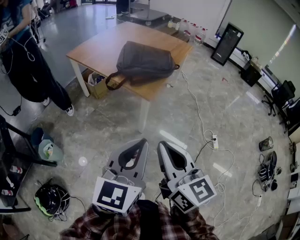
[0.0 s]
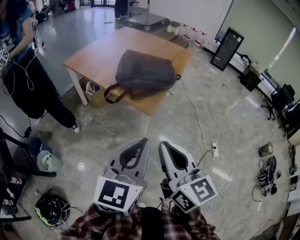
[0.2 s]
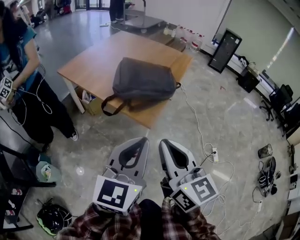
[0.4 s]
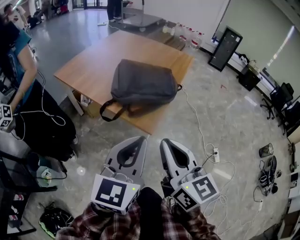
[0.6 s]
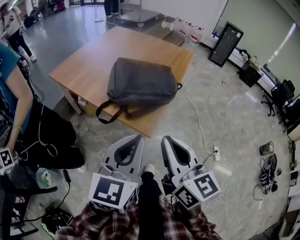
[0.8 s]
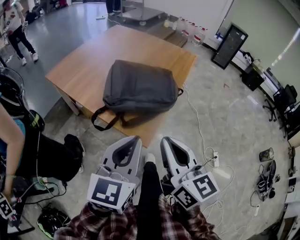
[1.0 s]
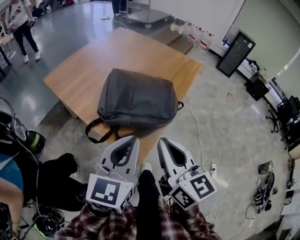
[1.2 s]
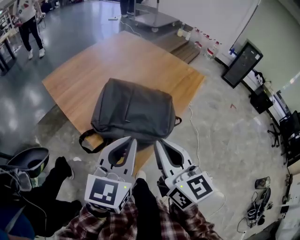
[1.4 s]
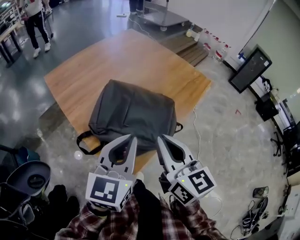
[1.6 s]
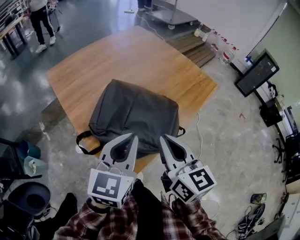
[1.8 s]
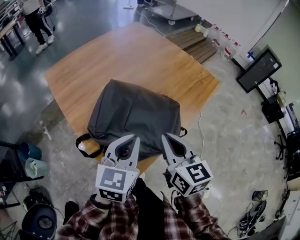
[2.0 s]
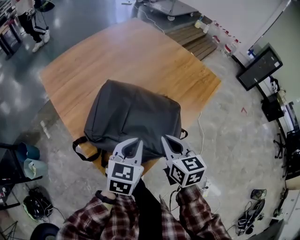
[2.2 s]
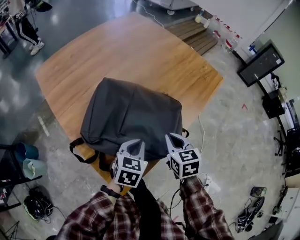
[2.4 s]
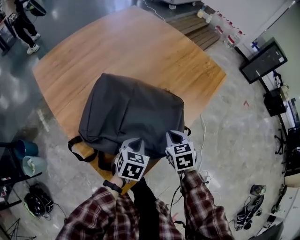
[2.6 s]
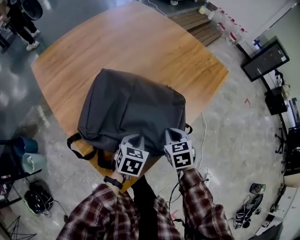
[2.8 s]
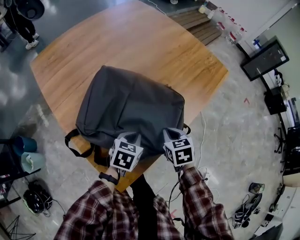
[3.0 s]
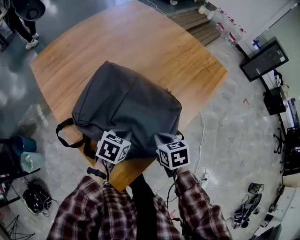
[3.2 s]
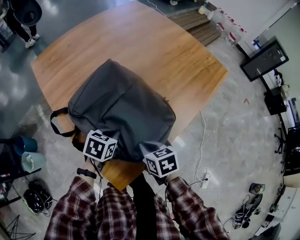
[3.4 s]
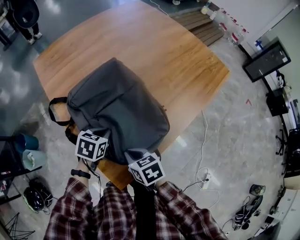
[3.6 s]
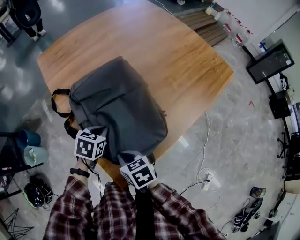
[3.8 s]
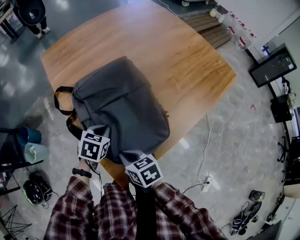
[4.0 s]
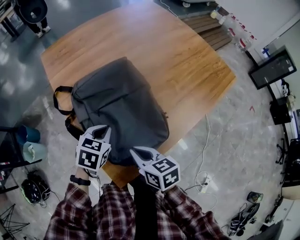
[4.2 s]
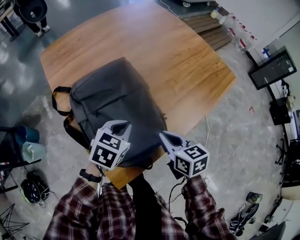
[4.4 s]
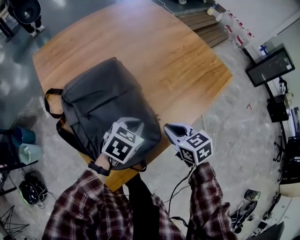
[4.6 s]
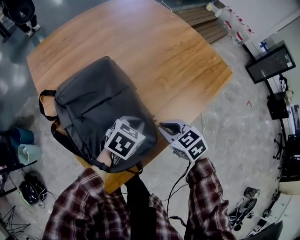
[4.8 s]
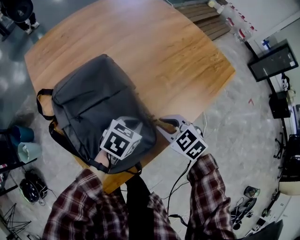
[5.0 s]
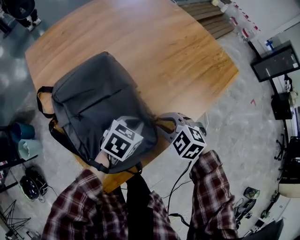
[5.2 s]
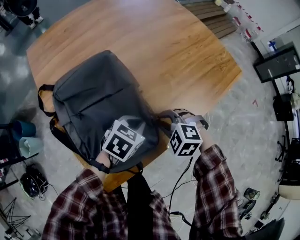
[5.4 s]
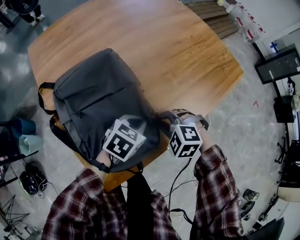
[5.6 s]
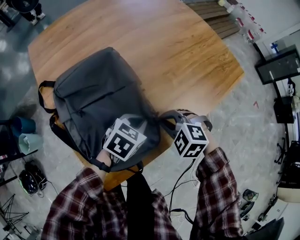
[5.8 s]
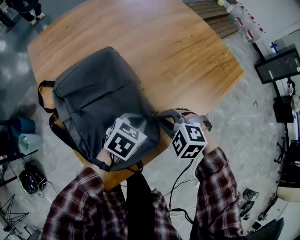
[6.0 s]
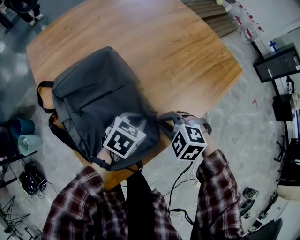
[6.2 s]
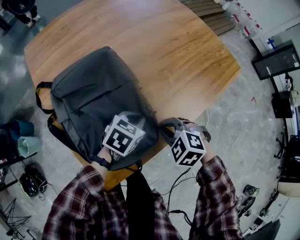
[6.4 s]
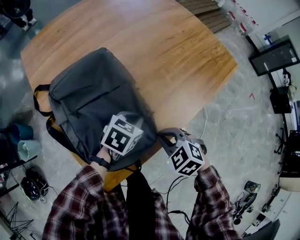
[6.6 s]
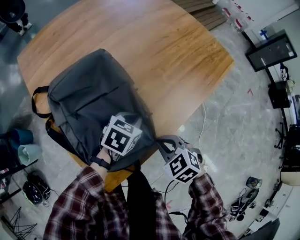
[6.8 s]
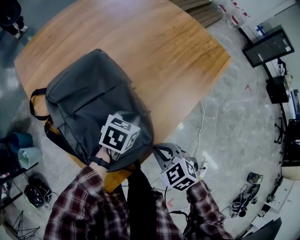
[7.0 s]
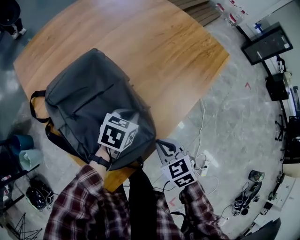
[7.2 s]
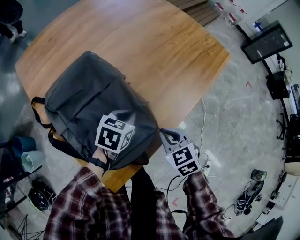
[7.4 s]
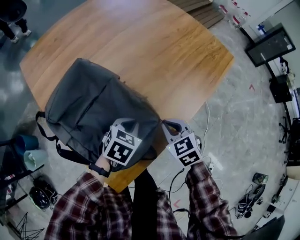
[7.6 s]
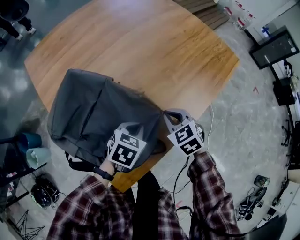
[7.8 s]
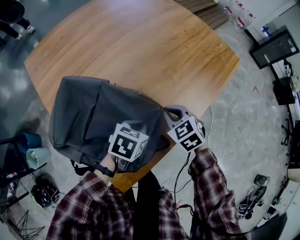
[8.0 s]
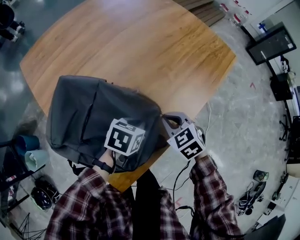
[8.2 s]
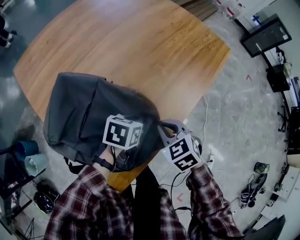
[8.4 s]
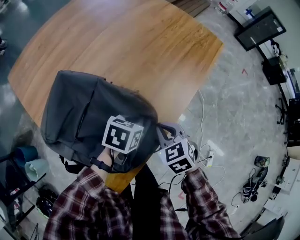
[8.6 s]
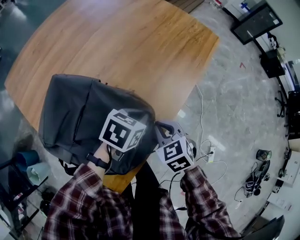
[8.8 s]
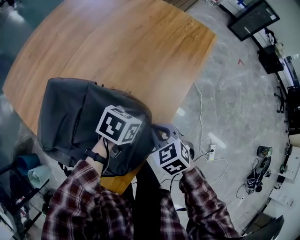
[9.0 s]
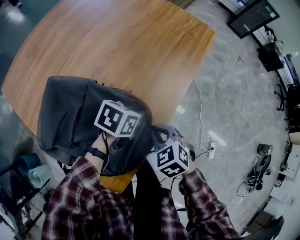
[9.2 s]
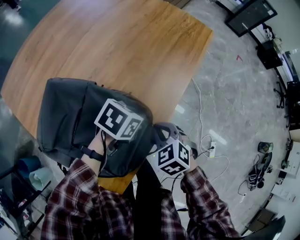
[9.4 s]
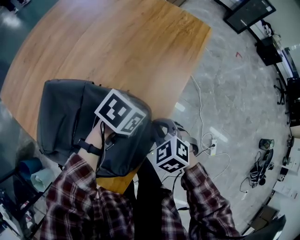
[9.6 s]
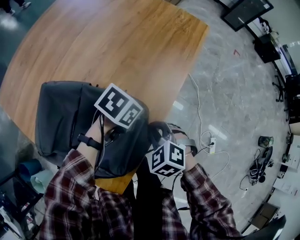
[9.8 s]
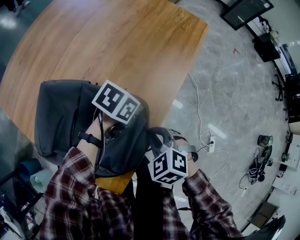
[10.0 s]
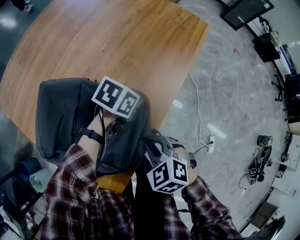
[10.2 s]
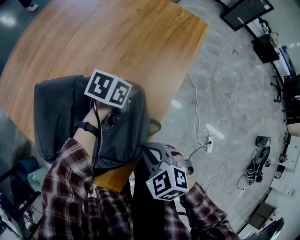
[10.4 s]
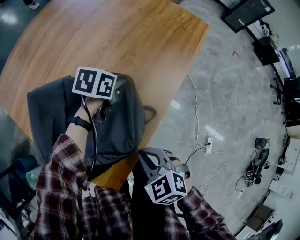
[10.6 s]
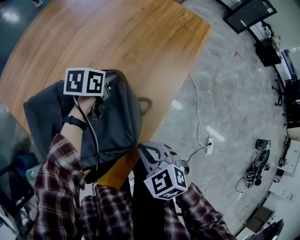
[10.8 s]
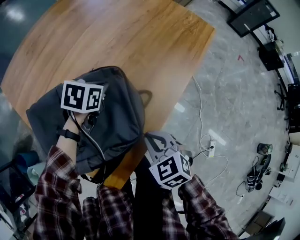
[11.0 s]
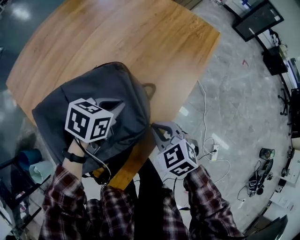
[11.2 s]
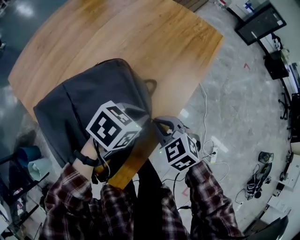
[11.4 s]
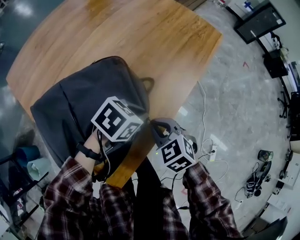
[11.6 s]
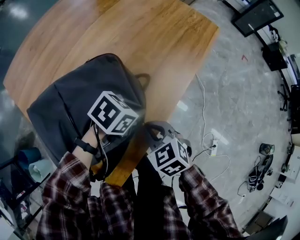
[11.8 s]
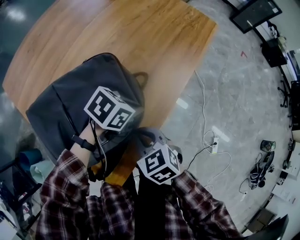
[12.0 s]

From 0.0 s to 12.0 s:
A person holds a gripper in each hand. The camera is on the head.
From 0.0 s to 1.6 s: Both grippers are carried forward, about 60 cm.
From 1.6 s to 3.0 s: The left gripper heads downward, covering approximately 30 cm, and tilts its fingers roughly 40 degrees downward. Meanwhile the right gripper heads downward and forward, covering roughly 35 cm, and tilts its fingers about 50 degrees downward.
From 3.0 s to 4.4 s: The two grippers go about 5 cm upward. The right gripper turns by about 30 degrees.
From 4.4 s to 6.0 s: The right gripper goes some 10 cm downward and forward, and rolls counterclockwise, seen from behind, by about 70 degrees, while the left gripper travels to the right and downward by some 15 cm.
From 6.0 s to 7.6 s: The right gripper reaches some 10 cm backward, then returns, and twists some 40 degrees clockwise, seen from behind.
From 7.6 s to 9.0 s: The left gripper is displaced to the right by approximately 5 cm, and changes its angle by roughly 20 degrees.
From 9.0 s to 10.4 s: The right gripper heads backward, covering about 10 cm. Meanwhile the left gripper goes some 5 cm forward.
From 10.4 s to 12.0 s: The left gripper shifts by about 10 cm.

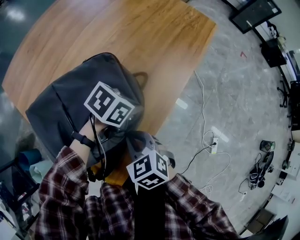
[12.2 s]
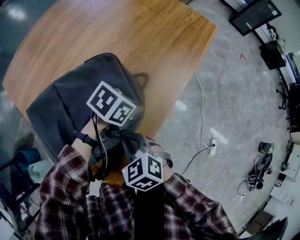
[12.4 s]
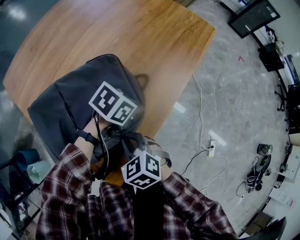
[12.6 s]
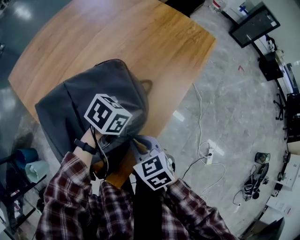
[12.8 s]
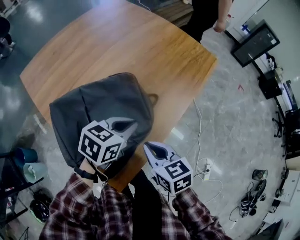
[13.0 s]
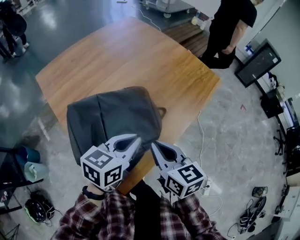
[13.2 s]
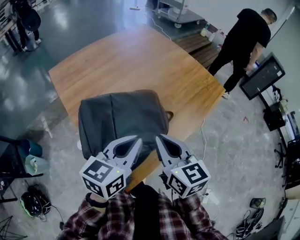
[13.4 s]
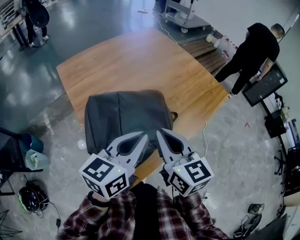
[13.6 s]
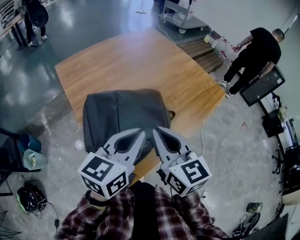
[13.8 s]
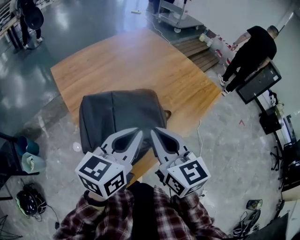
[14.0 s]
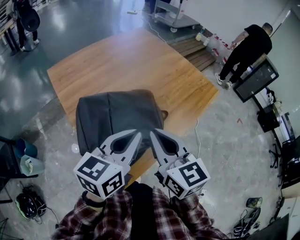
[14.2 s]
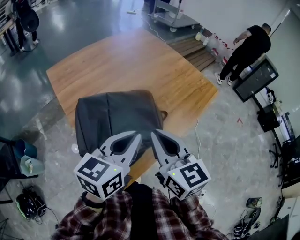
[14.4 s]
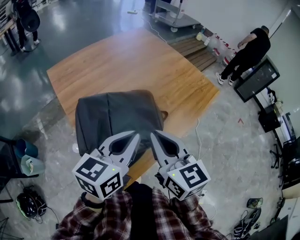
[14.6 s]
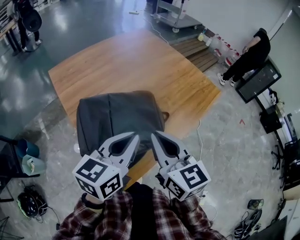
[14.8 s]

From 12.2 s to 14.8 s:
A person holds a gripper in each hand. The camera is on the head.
From 12.2 s to 13.4 s: The two grippers go some 25 cm upward. The left gripper tips its fingers upward by roughly 30 degrees. Meanwhile the right gripper tilts its fingers roughly 30 degrees upward.
From 13.4 s to 14.8 s: The right gripper changes place by approximately 5 cm.

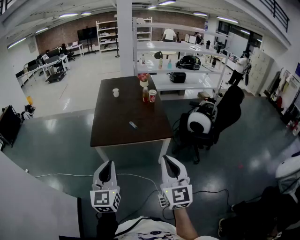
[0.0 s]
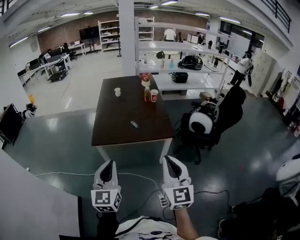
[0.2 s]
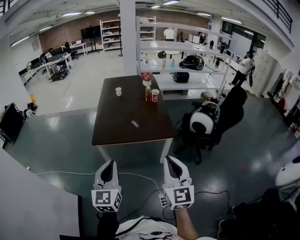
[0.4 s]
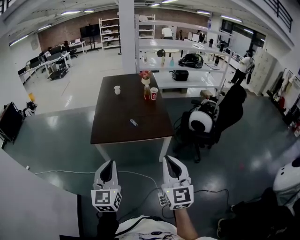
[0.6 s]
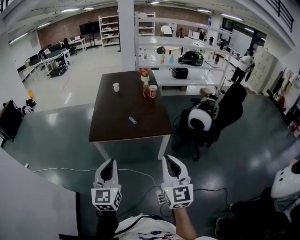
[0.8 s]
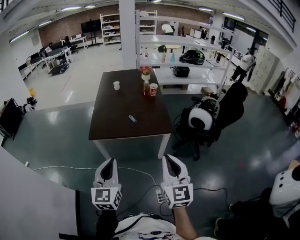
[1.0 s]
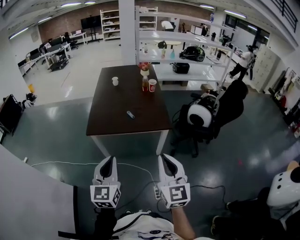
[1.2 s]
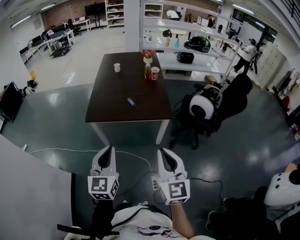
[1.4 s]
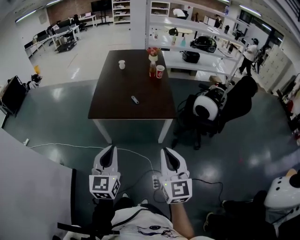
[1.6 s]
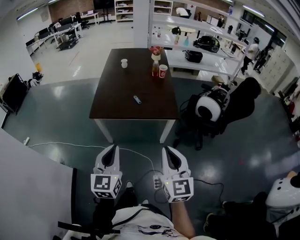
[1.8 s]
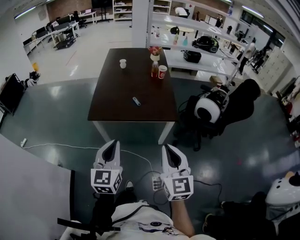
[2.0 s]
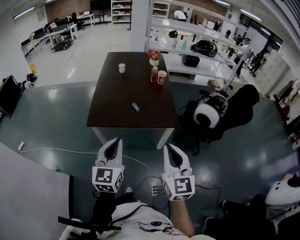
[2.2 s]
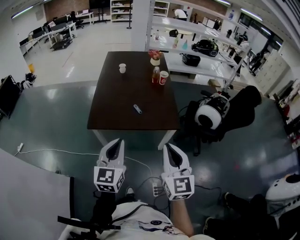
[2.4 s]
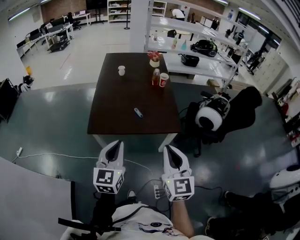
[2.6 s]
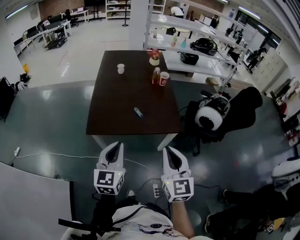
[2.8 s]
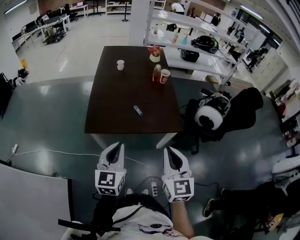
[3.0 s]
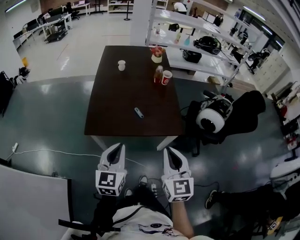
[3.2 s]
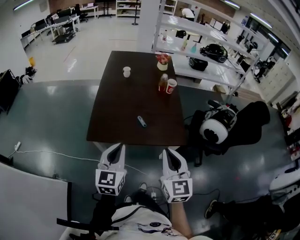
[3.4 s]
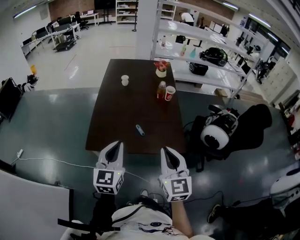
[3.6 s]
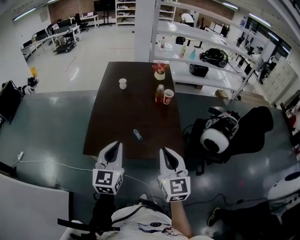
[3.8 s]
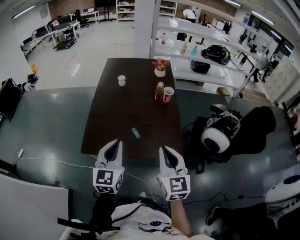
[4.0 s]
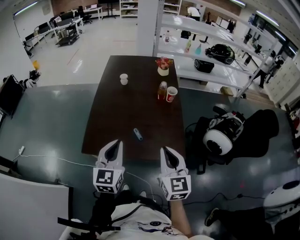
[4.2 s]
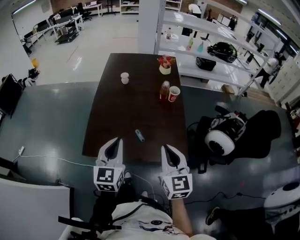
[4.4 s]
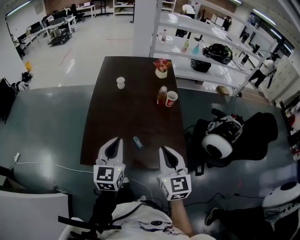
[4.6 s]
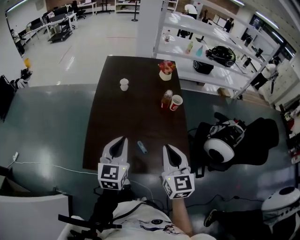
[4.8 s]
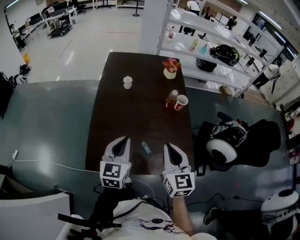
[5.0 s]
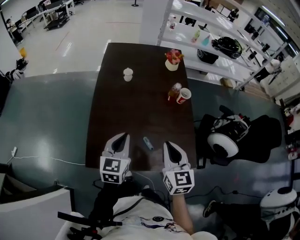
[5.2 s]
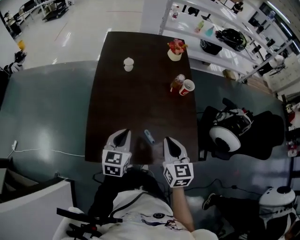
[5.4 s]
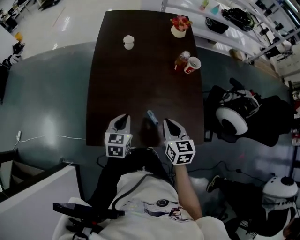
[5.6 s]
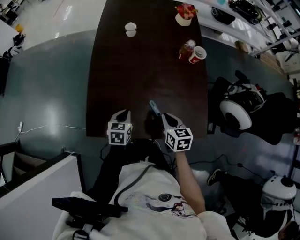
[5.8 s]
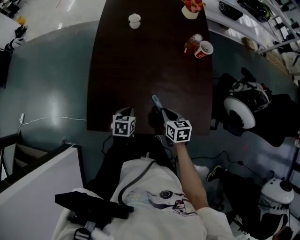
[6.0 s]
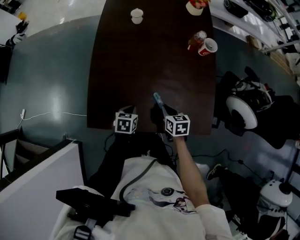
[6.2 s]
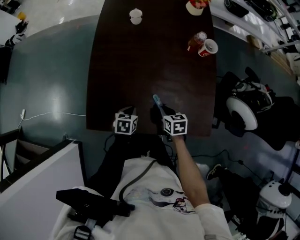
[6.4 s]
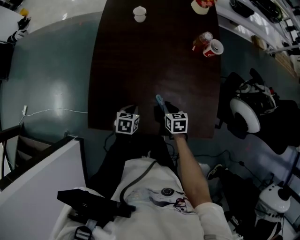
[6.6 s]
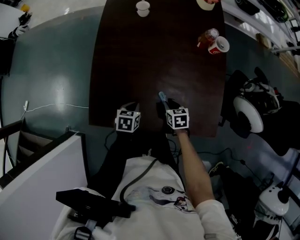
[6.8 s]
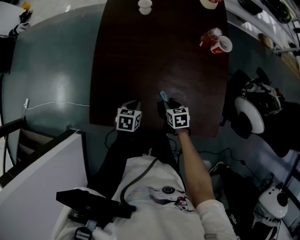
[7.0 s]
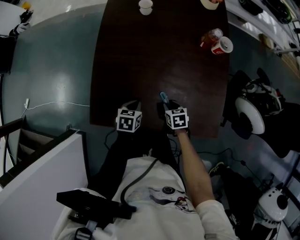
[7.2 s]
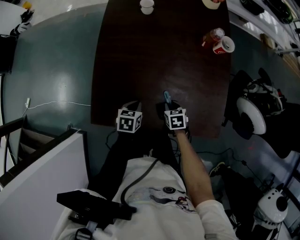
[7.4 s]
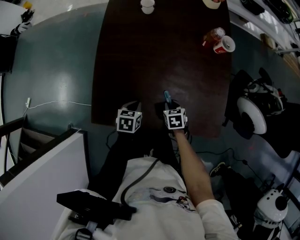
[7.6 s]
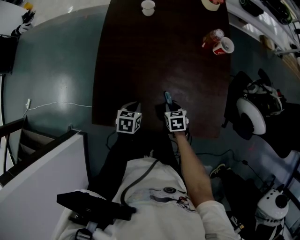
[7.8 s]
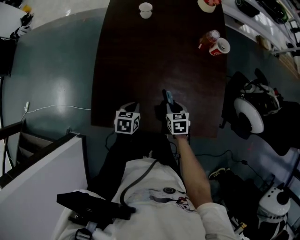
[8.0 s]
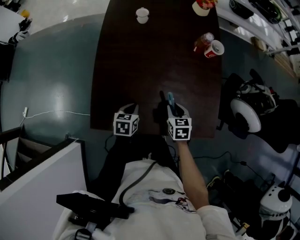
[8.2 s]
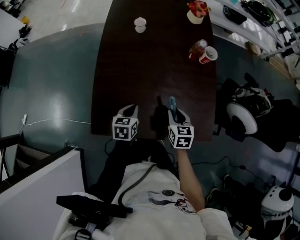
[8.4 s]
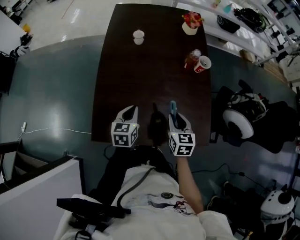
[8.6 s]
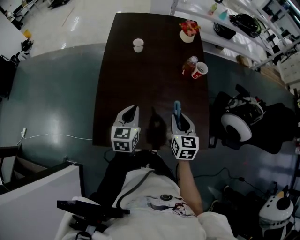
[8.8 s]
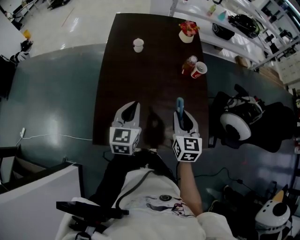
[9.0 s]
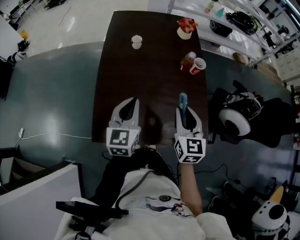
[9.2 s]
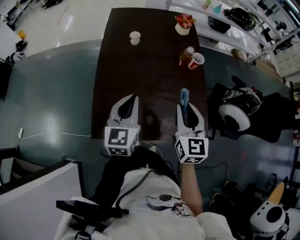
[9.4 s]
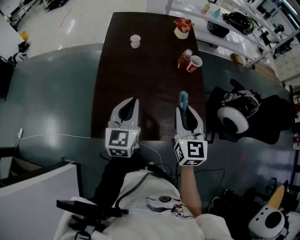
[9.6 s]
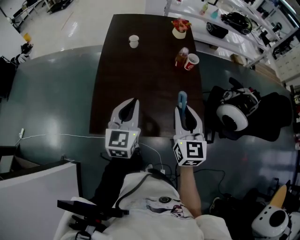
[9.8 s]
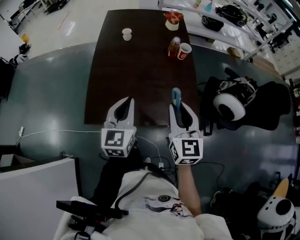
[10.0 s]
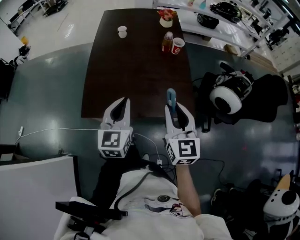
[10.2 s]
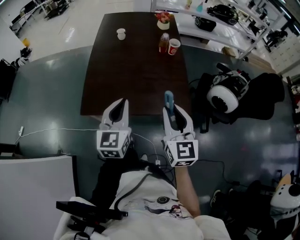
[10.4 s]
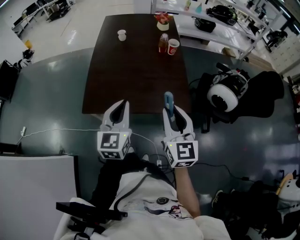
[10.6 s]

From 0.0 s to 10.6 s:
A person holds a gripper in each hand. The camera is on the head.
From 0.0 s to 1.6 s: The right gripper changes place by roughly 5 cm; the left gripper goes about 5 cm to the right.
From 1.6 s to 3.0 s: The left gripper goes some 15 cm forward, while the right gripper goes approximately 15 cm forward and to the left.
From 3.0 s to 4.6 s: The grippers both shift forward by roughly 25 cm.
From 4.6 s to 6.0 s: Both grippers travel together downward, about 30 cm. The right gripper tips its fingers downward by about 30 degrees. Meanwhile the left gripper angles its fingers downward, by approximately 40 degrees.
From 6.0 s to 7.6 s: The right gripper travels downward by some 10 cm, and changes its angle by some 20 degrees.
From 7.6 s to 9.0 s: Both grippers travel together upward, about 25 cm. The left gripper tips its fingers upward by about 40 degrees. Meanwhile the right gripper points its fingers some 40 degrees further upward.
From 9.0 s to 10.6 s: The right gripper shifts about 25 cm backward and upward. Meanwhile the left gripper is displaced backward by some 25 cm.
